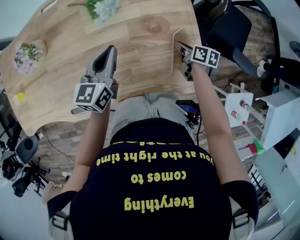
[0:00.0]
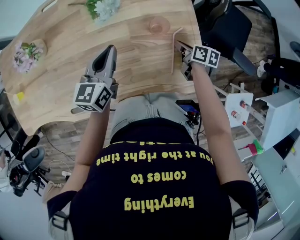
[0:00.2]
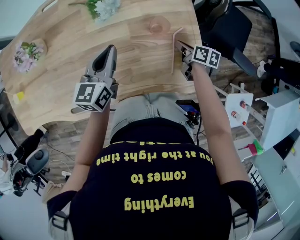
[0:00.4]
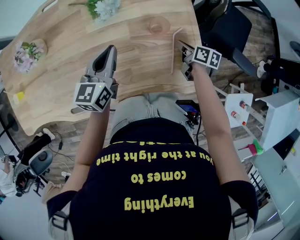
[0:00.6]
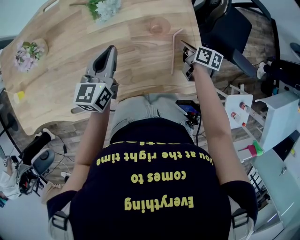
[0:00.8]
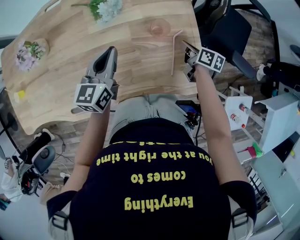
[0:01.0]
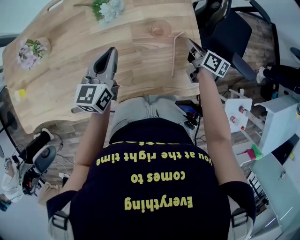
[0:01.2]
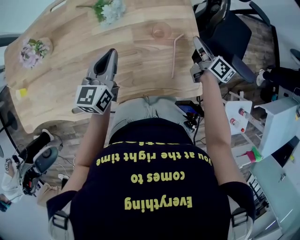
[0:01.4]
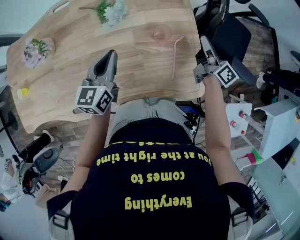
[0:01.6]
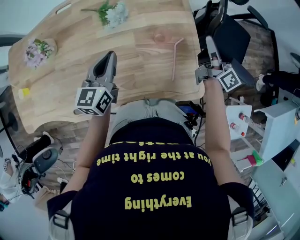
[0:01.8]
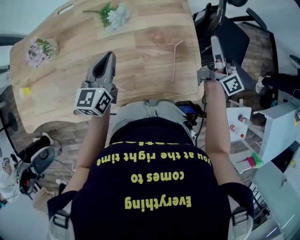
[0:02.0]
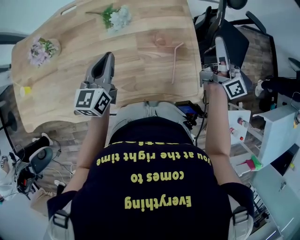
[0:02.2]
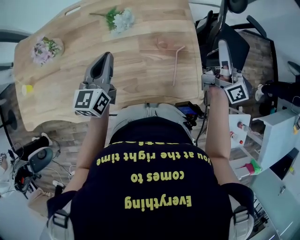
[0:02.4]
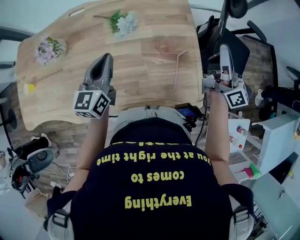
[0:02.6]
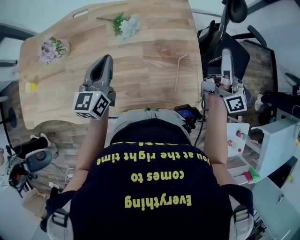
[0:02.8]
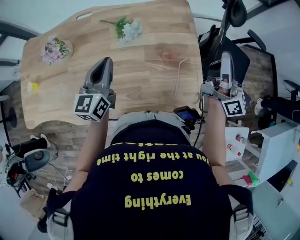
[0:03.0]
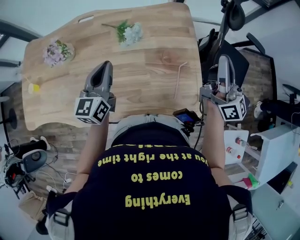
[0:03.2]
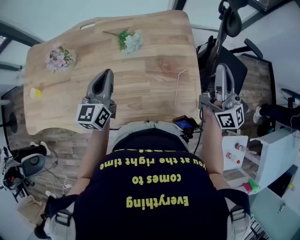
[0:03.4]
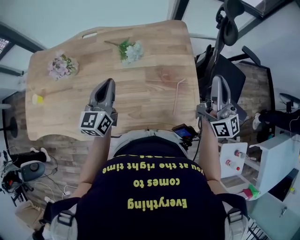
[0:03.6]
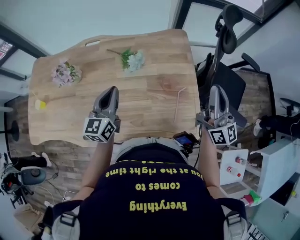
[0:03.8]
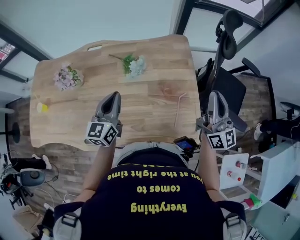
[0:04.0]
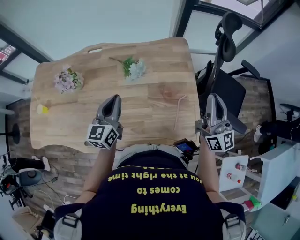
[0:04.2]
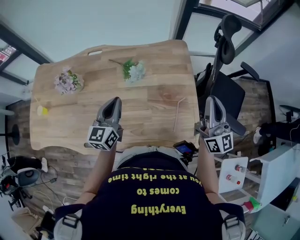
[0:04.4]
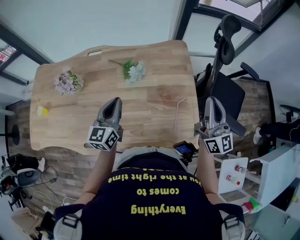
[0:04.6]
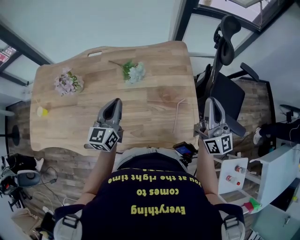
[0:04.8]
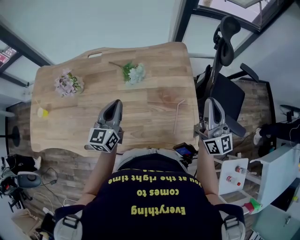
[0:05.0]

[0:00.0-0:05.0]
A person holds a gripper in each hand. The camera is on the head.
0.0 to 1.6 s: The right gripper goes some 15 cm upward, and tips its fingers upward by approximately 40 degrees.
1.6 to 3.4 s: The right gripper moves upward, approximately 25 cm, and rotates roughly 40 degrees, while the left gripper is displaced upward and to the left by about 10 cm.
3.4 to 5.0 s: The grippers stay close to where they were, moving slightly.

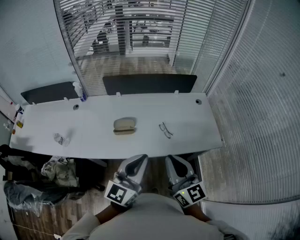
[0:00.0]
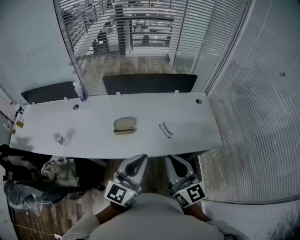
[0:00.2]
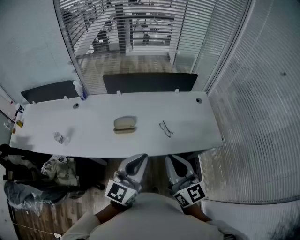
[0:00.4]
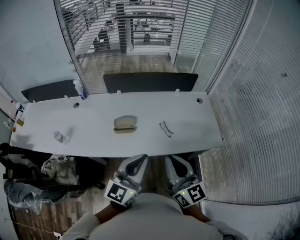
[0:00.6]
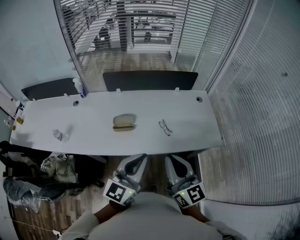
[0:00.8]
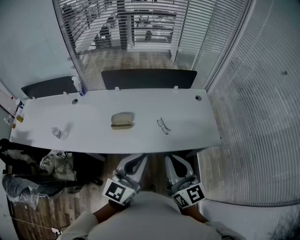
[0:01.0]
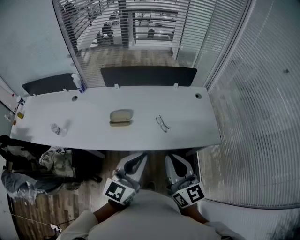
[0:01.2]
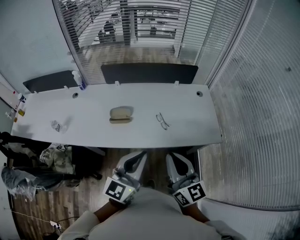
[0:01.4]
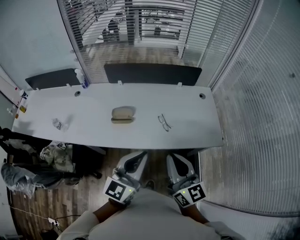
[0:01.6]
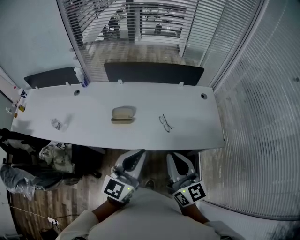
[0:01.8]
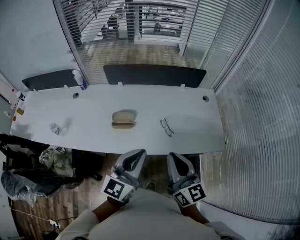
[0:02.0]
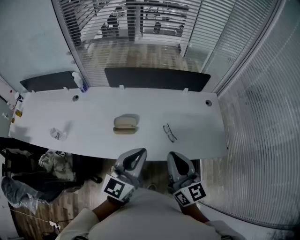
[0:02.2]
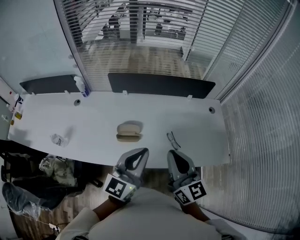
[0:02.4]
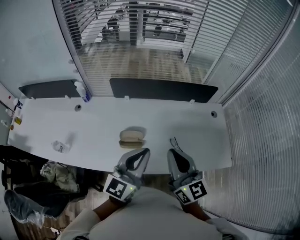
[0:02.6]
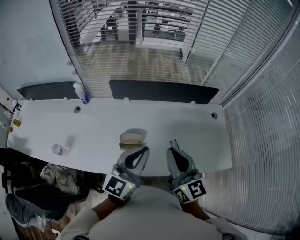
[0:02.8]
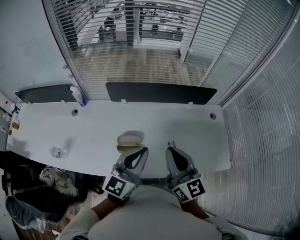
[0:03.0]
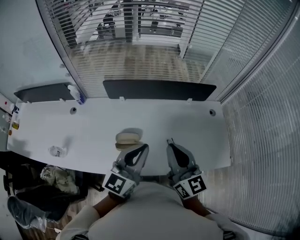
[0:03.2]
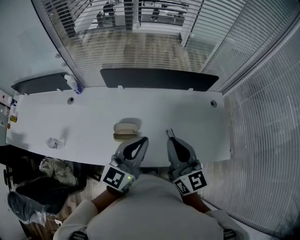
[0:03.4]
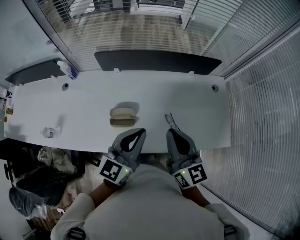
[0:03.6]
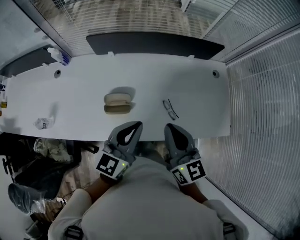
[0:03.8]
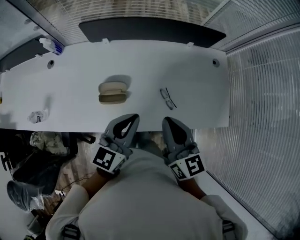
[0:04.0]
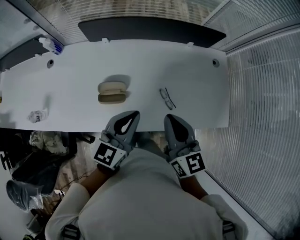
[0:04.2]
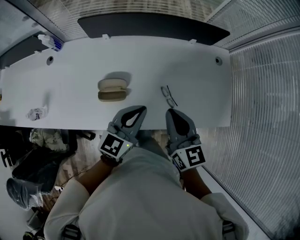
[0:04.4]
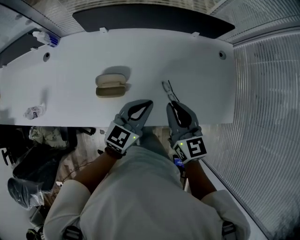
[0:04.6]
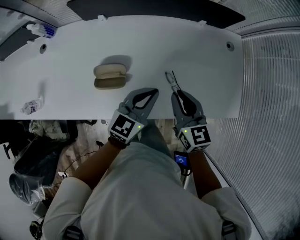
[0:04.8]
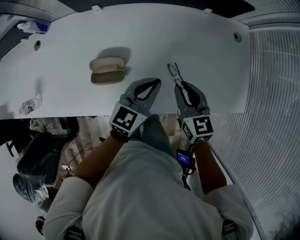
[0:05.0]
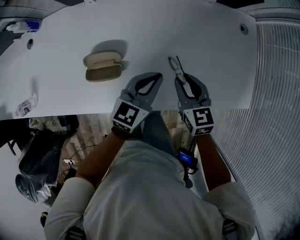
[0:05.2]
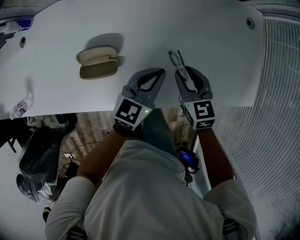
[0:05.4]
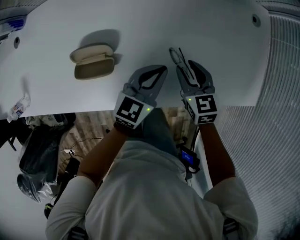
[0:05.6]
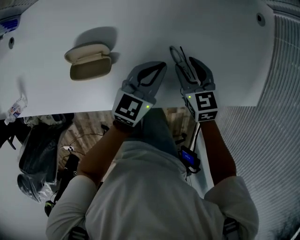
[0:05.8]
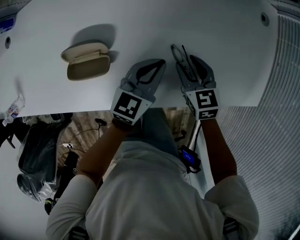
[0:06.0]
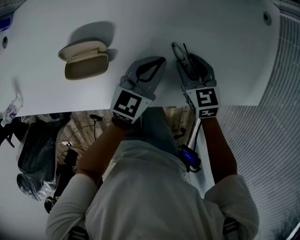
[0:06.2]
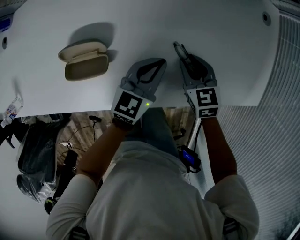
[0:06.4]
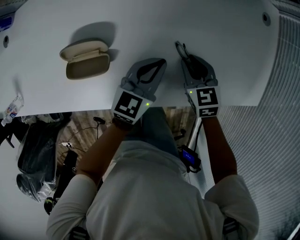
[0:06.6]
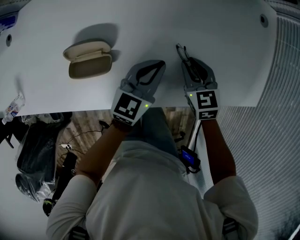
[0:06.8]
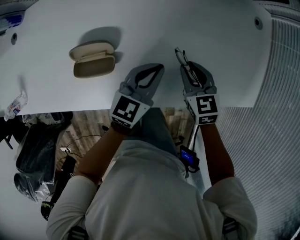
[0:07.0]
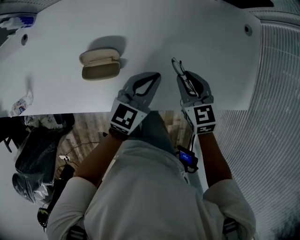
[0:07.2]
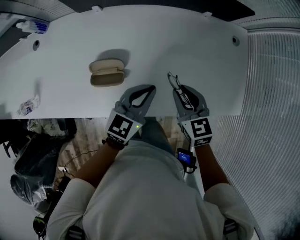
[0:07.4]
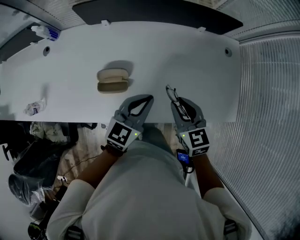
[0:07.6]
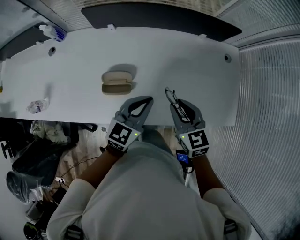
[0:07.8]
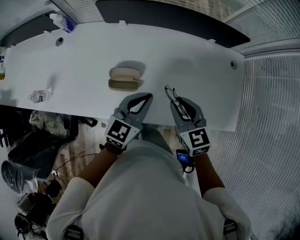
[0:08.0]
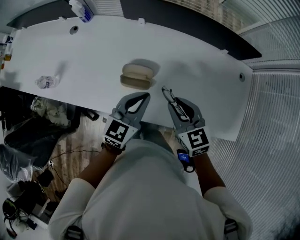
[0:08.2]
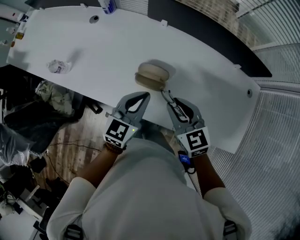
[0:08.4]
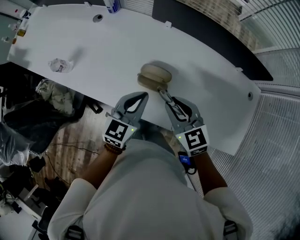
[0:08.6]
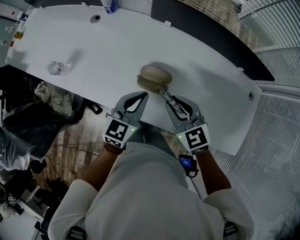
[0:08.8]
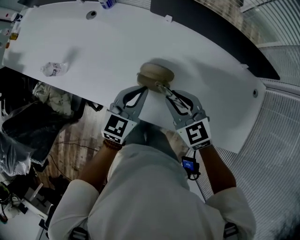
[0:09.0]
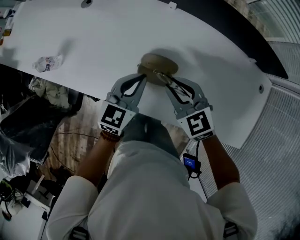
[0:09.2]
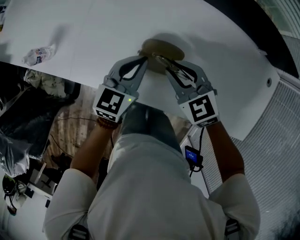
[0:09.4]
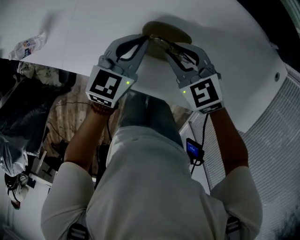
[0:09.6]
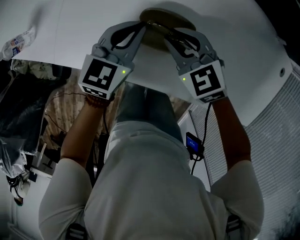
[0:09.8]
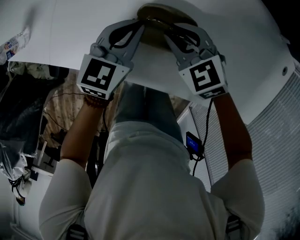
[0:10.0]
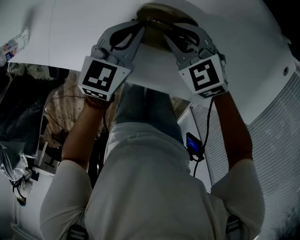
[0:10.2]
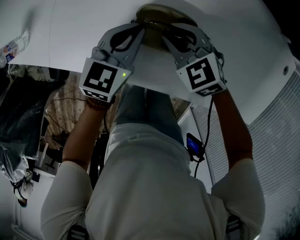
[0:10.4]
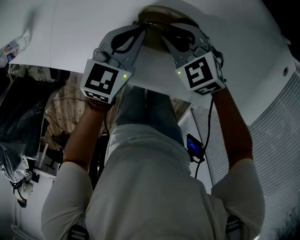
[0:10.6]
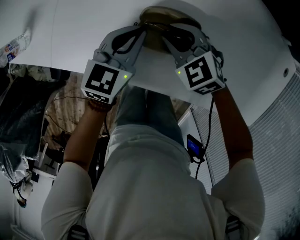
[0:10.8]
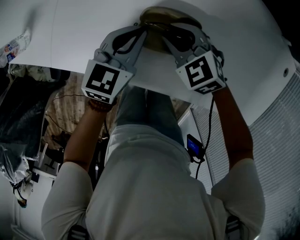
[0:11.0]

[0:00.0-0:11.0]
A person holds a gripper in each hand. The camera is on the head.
0.0 to 1.6 s: Both grippers move to the right, some 5 cm.
1.6 to 3.2 s: The right gripper heads forward and to the left, covering some 25 cm, while the left gripper moves forward, roughly 25 cm.
3.2 to 4.8 s: The two grippers go some 20 cm downward. The right gripper rotates roughly 30 degrees; the left gripper swivels some 20 degrees.
4.8 to 6.2 s: The grippers both shift downward by approximately 20 cm. The right gripper rotates about 20 degrees, and opens up.
6.2 to 7.8 s: Both grippers travel together upward, roughly 25 cm. The right gripper closes its fingers.
7.8 to 9.4 s: The left gripper ends up approximately 20 cm from where it was, and swivels approximately 20 degrees. The right gripper ends up roughly 25 cm from where it was, and turns by about 40 degrees.
9.4 to 11.0 s: Both grippers travel together downward, some 10 cm.

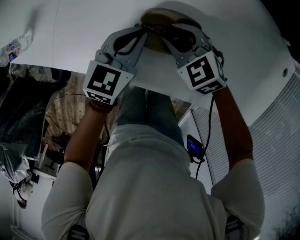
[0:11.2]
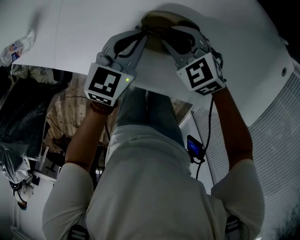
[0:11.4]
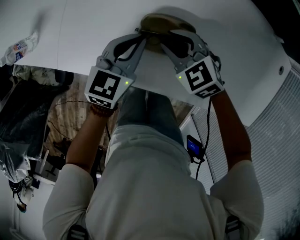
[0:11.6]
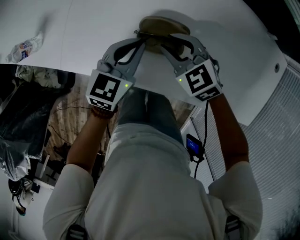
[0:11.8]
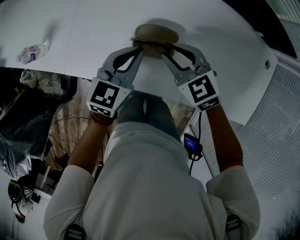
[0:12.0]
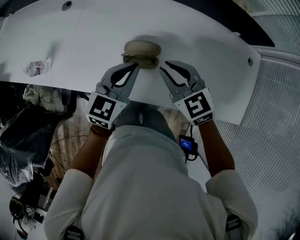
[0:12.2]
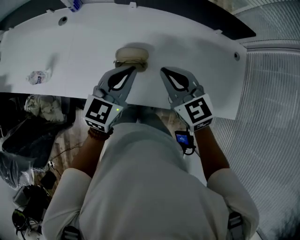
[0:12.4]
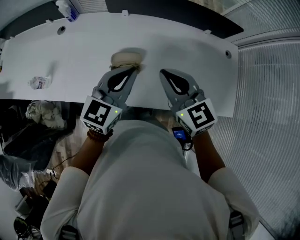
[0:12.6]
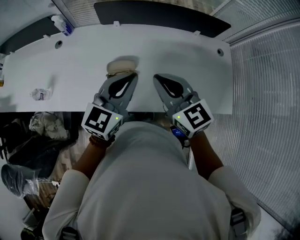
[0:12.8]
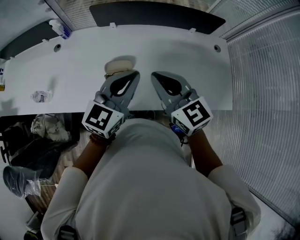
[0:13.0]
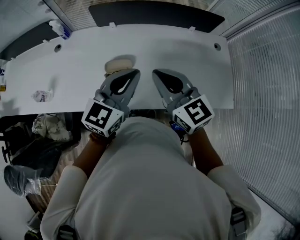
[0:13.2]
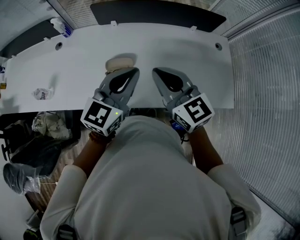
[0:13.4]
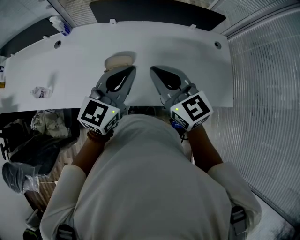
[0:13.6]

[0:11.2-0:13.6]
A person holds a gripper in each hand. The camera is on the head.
11.2 to 12.4 s: The grippers both shift upward by roughly 25 cm. The right gripper changes its angle by approximately 30 degrees, and closes.
12.4 to 13.6 s: Both grippers move upward and to the right, about 10 cm.

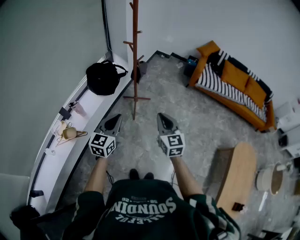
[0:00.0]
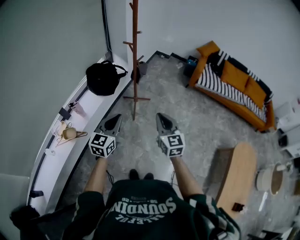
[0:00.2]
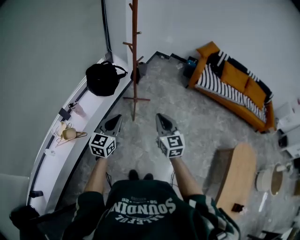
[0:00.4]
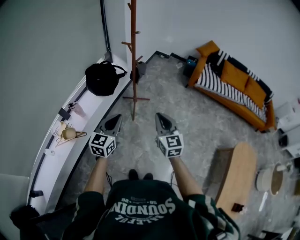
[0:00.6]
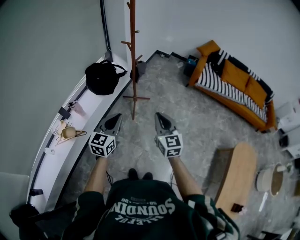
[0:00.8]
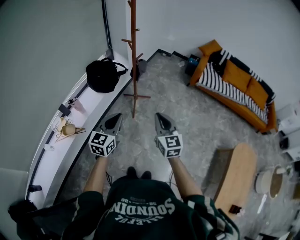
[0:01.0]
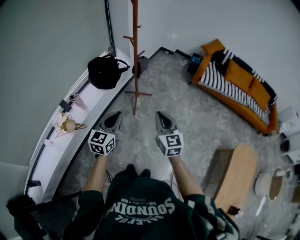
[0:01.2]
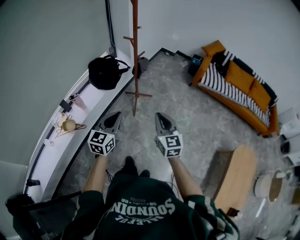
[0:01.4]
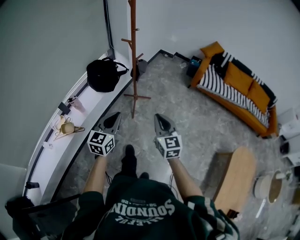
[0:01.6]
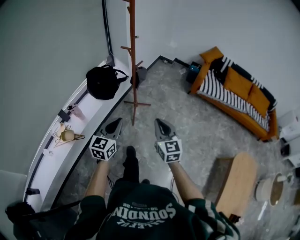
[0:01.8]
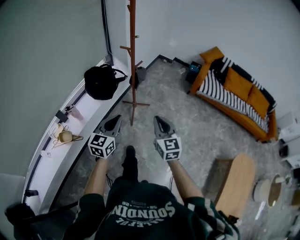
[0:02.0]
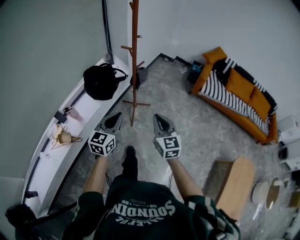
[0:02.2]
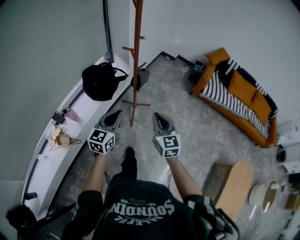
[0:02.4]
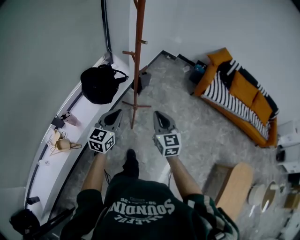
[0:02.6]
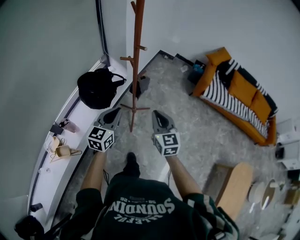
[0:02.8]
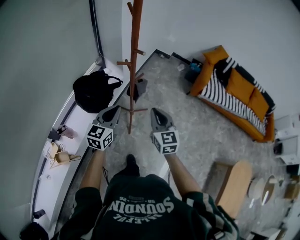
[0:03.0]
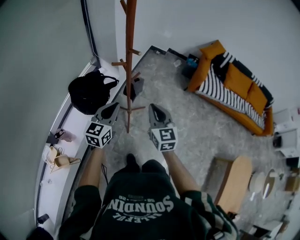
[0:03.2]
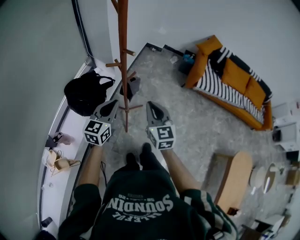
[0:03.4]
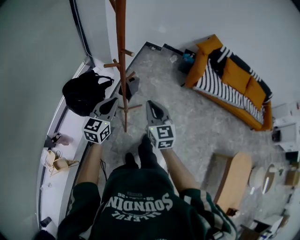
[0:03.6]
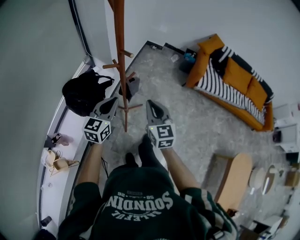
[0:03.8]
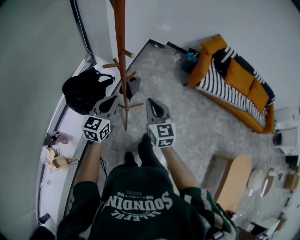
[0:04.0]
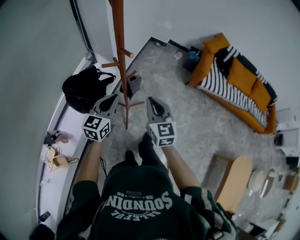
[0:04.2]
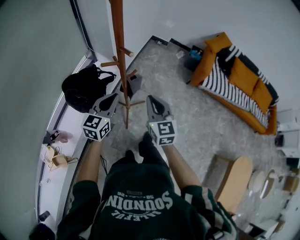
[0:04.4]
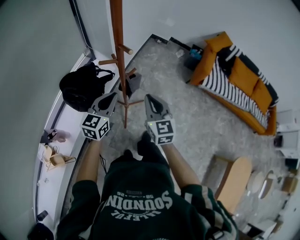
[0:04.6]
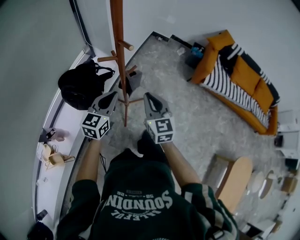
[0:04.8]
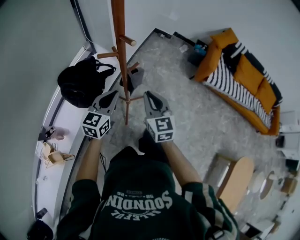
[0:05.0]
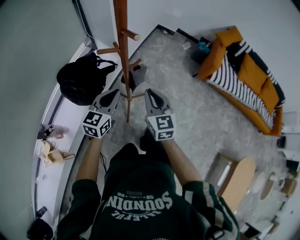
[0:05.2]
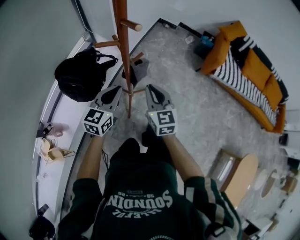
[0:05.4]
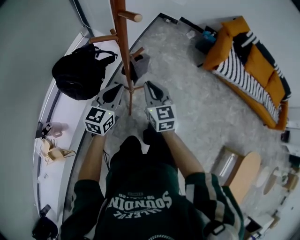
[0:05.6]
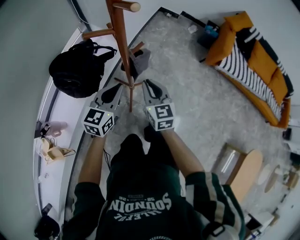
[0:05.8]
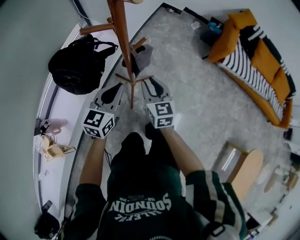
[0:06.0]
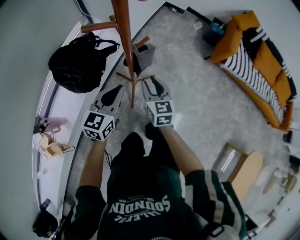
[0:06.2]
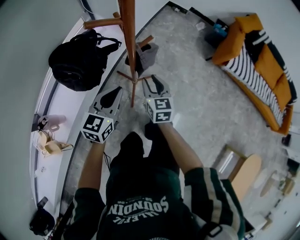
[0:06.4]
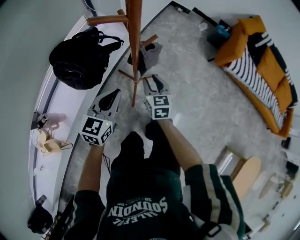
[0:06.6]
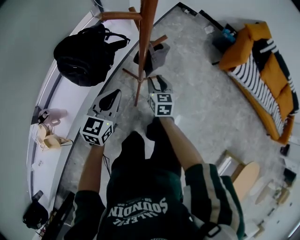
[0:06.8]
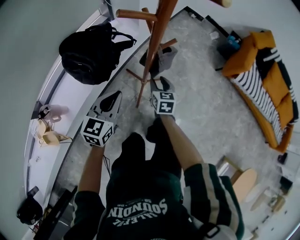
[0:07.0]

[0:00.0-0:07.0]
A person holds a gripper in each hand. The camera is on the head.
0.0 to 1.4 s: The grippers make only small movements.
1.4 to 2.8 s: Both grippers travel together forward, some 30 cm.
2.8 to 4.2 s: Both grippers move forward, roughly 15 cm.
4.2 to 5.6 s: Both grippers move downward, approximately 15 cm.
5.6 to 7.0 s: The left gripper travels downward and to the left by about 10 cm. The right gripper moves downward, approximately 20 cm, changes its angle by some 20 degrees, and opens.
